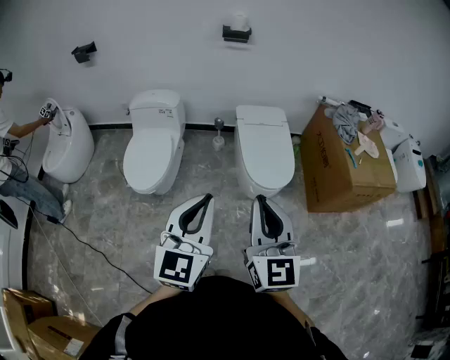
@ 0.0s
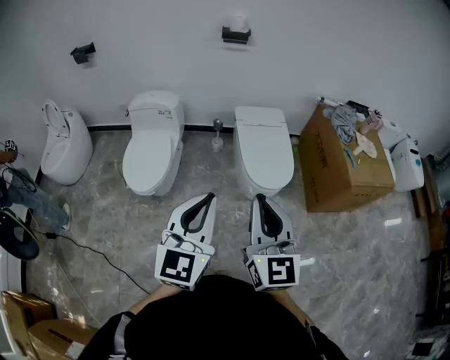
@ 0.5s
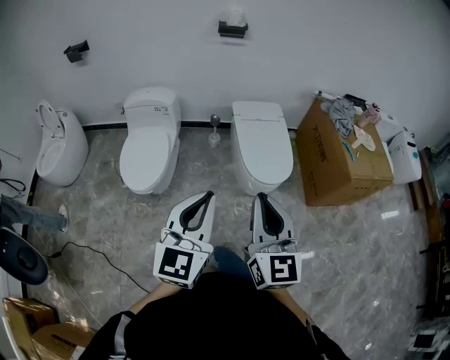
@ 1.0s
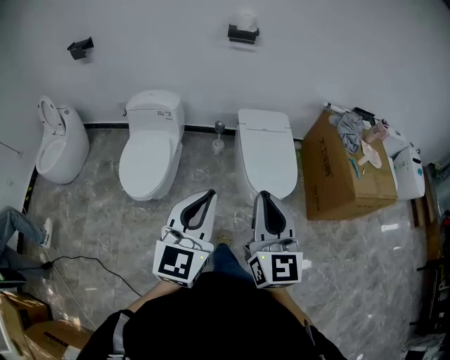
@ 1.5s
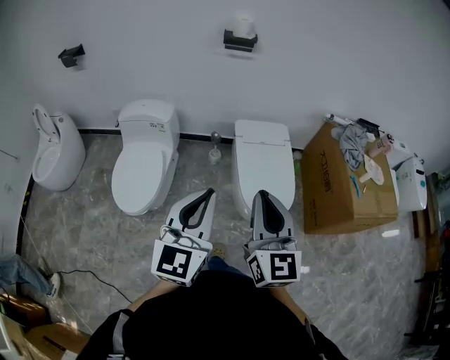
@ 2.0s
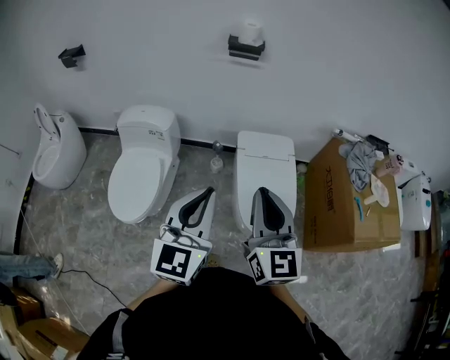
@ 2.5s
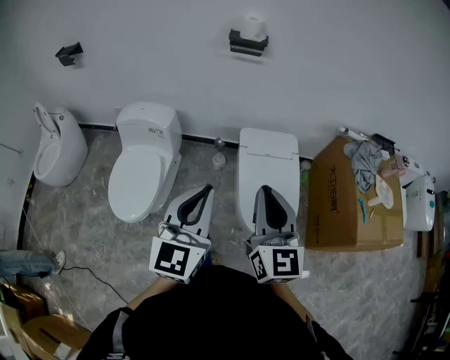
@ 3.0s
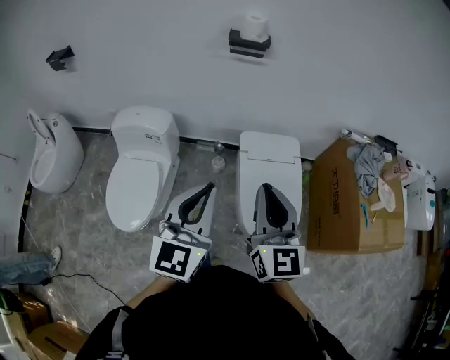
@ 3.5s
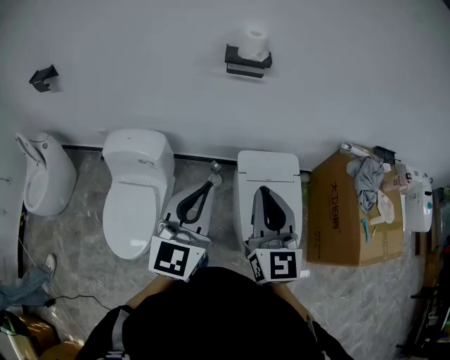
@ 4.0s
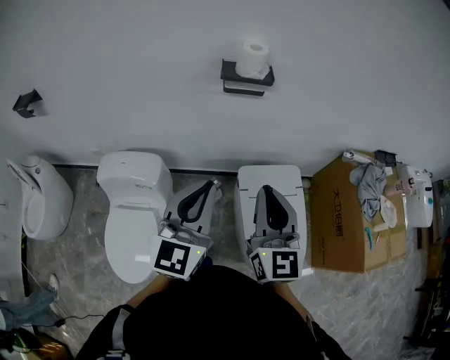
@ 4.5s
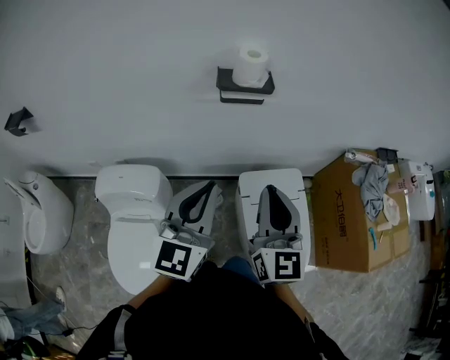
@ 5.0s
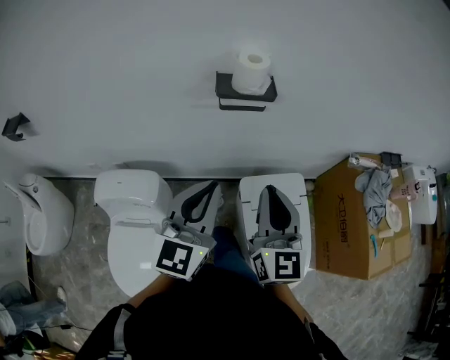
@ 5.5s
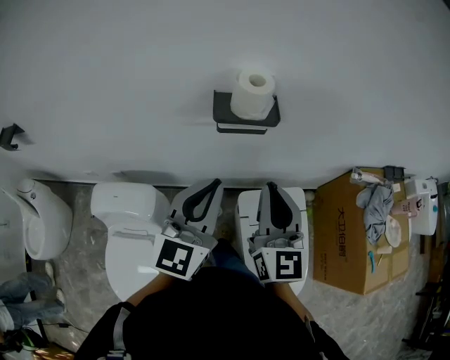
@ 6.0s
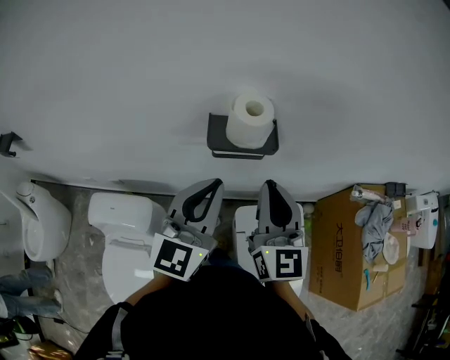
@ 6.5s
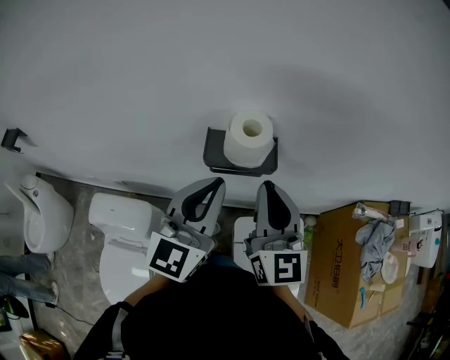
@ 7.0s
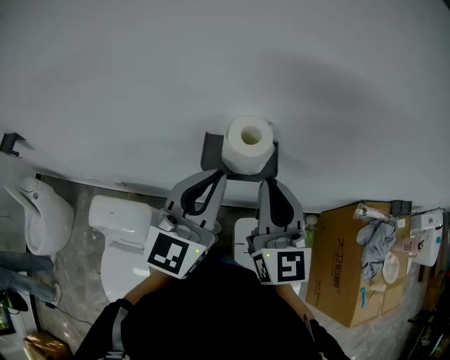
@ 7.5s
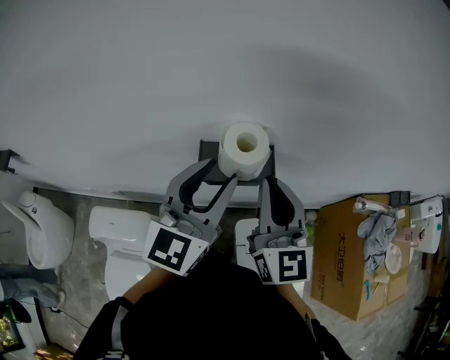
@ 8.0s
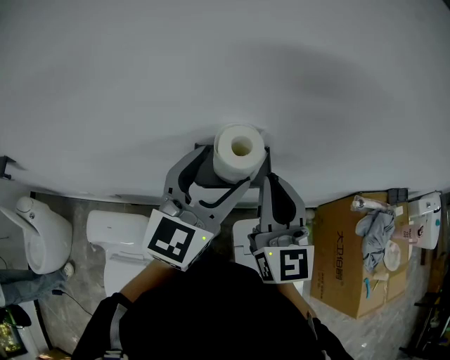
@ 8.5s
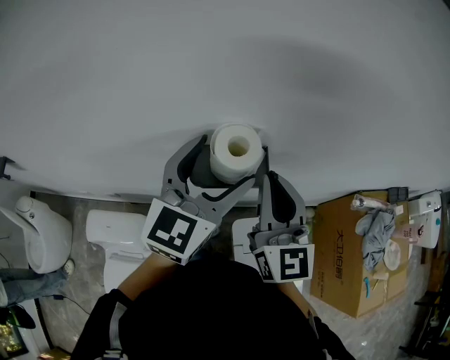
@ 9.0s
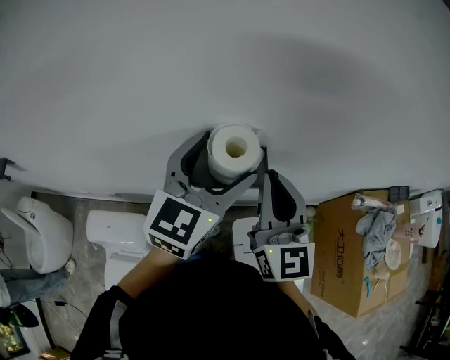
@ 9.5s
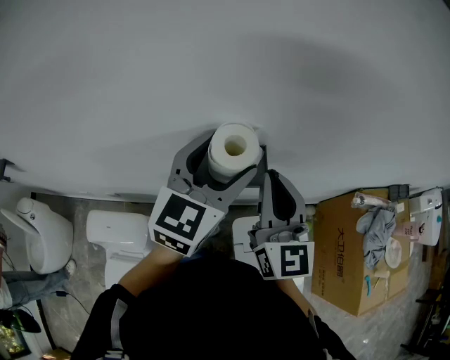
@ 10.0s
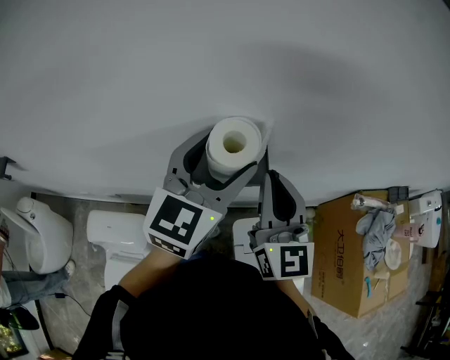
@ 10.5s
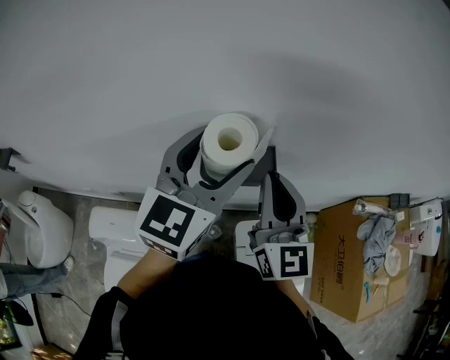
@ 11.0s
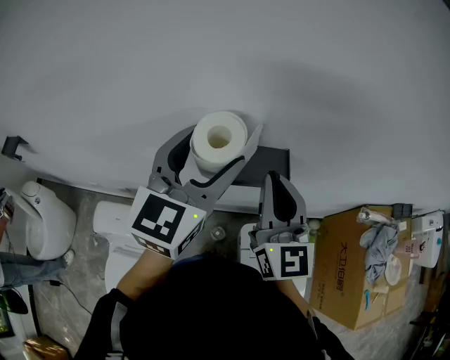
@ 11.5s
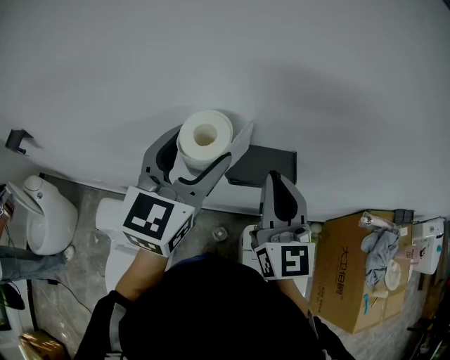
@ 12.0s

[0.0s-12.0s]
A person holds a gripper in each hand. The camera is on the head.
0.0s to 2.0s: The two grippers go some 20 cm forward.
2.0s to 4.0s: The two grippers go roughly 35 cm forward.
4.0s to 6.0s: Both grippers move forward, roughly 30 cm.
6.0s to 8.0s: The grippers both shift forward by approximately 15 cm. The left gripper opens.
8.0s to 10.0s: The left gripper travels forward by some 5 cm, and opens its fingers.
10.0s to 12.0s: The right gripper travels to the left by about 5 cm; the left gripper shifts roughly 10 cm to the left.

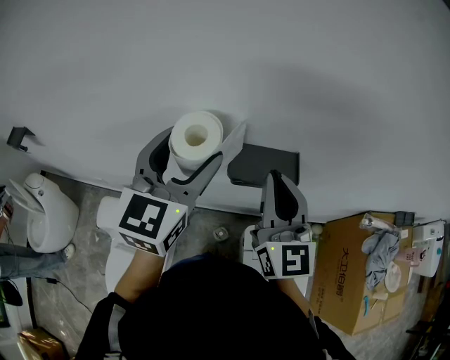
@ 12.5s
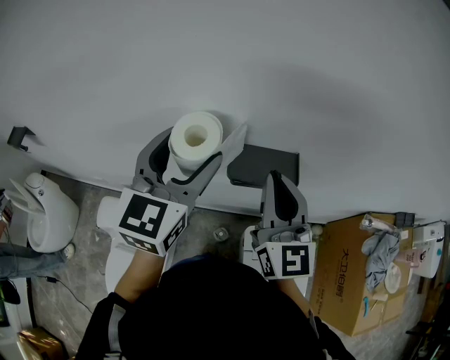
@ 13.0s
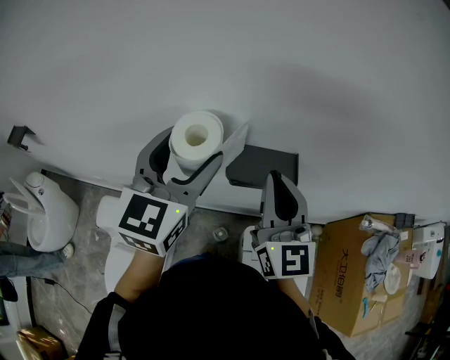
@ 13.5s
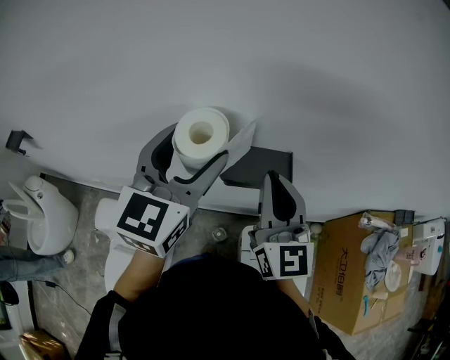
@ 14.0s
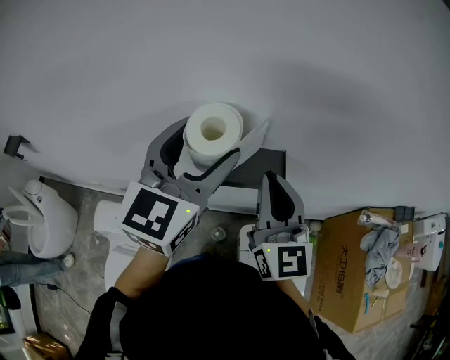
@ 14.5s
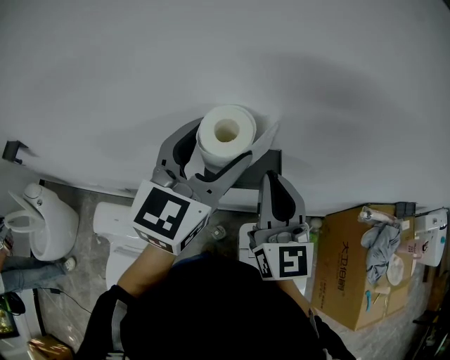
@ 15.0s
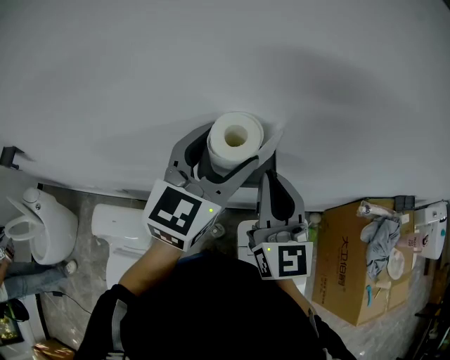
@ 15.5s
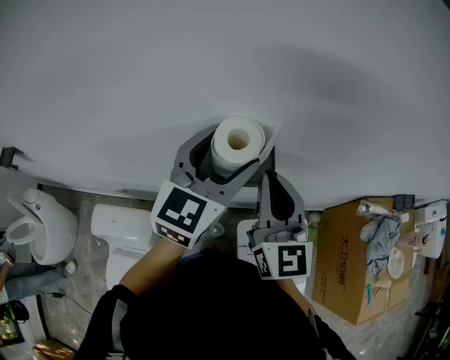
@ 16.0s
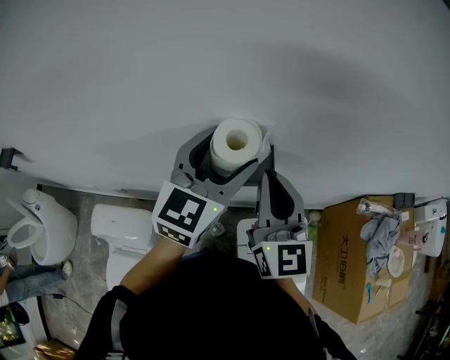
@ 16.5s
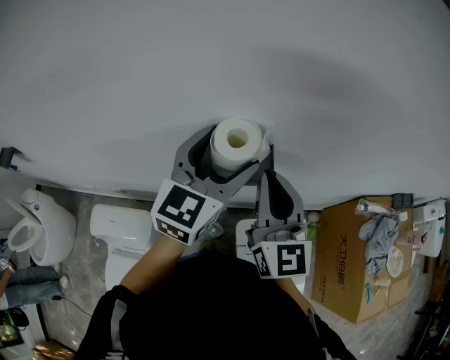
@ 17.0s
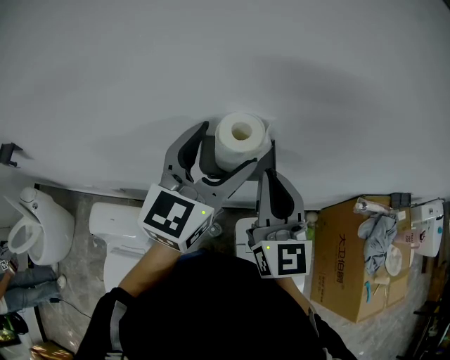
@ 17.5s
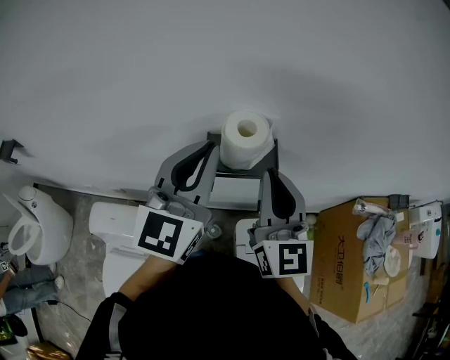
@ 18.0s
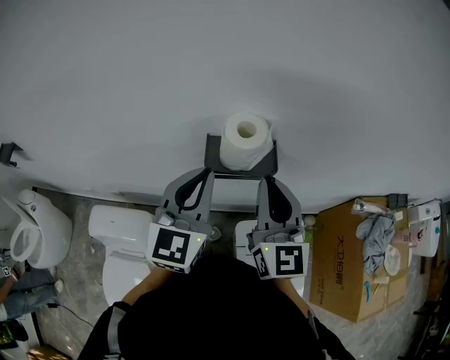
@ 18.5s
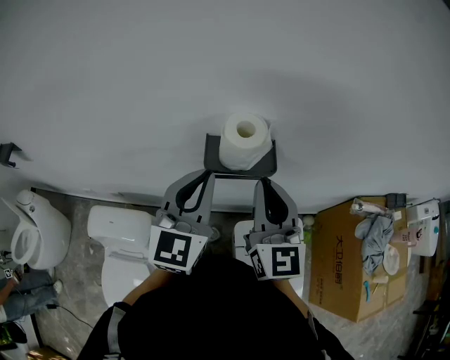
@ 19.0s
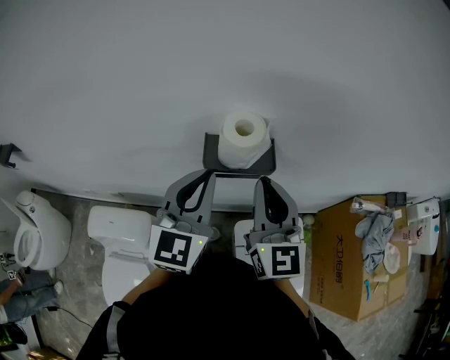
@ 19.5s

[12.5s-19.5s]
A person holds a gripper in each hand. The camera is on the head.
12.5s to 14.5s: The left gripper moves to the right, some 5 cm.
14.5s to 16.0s: The left gripper shifts some 10 cm to the right and downward.
16.0s to 17.5s: The grippers stay close to where they were, moving slightly.
17.5s to 19.5s: The left gripper travels downward and backward by approximately 10 cm, and closes its fingers.

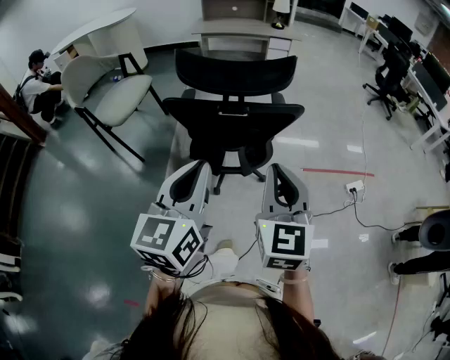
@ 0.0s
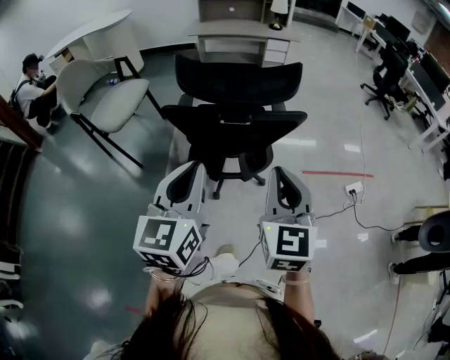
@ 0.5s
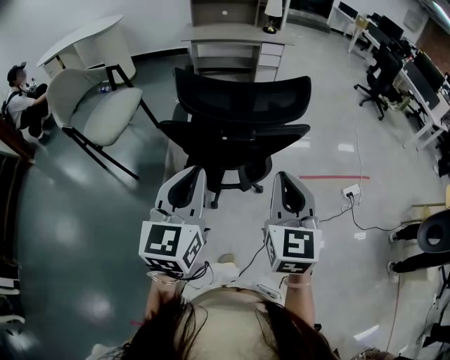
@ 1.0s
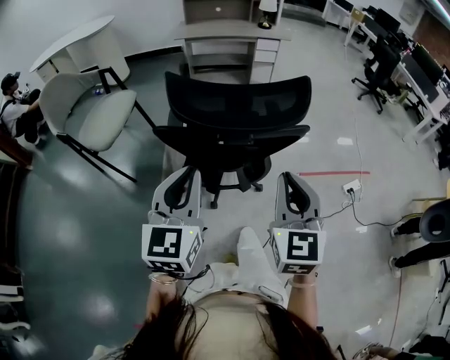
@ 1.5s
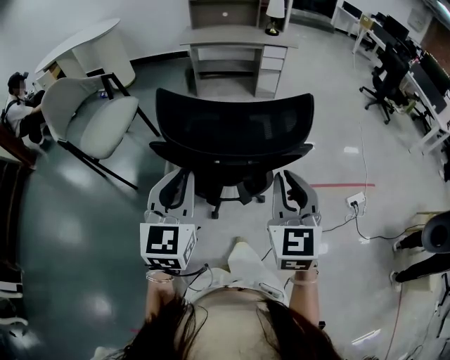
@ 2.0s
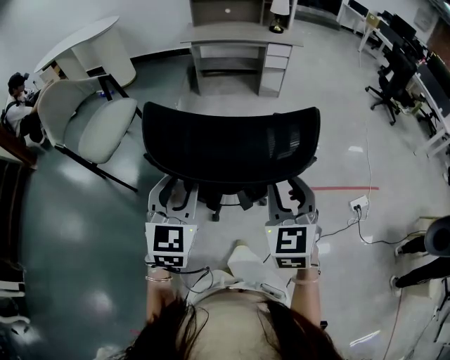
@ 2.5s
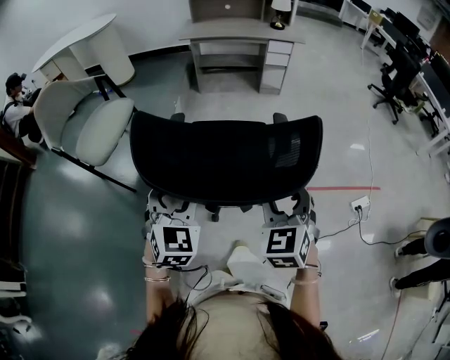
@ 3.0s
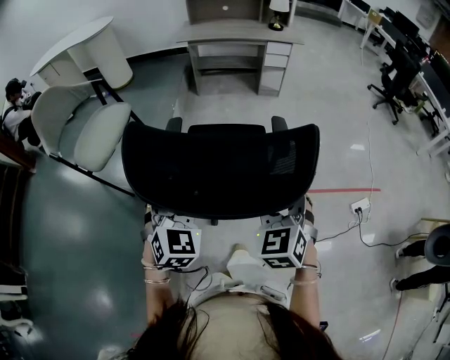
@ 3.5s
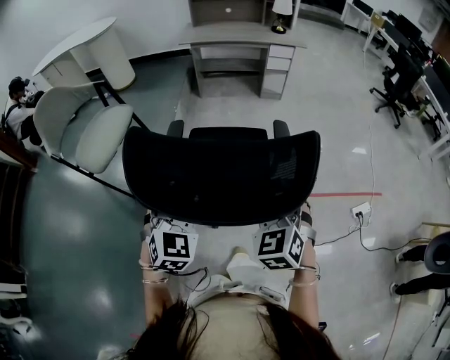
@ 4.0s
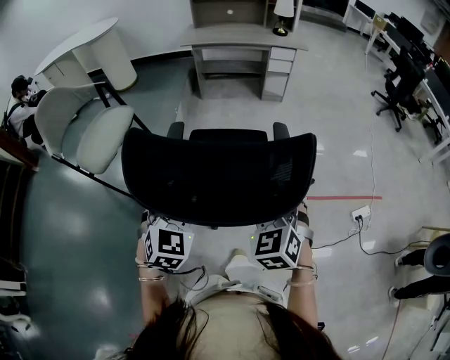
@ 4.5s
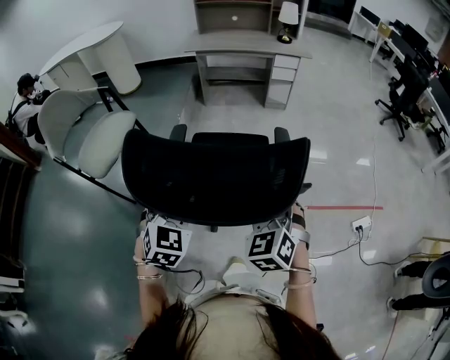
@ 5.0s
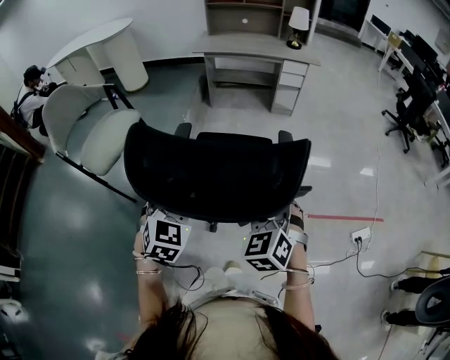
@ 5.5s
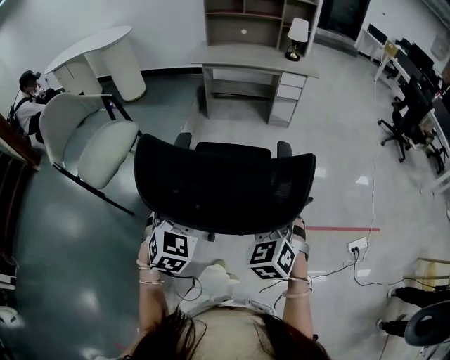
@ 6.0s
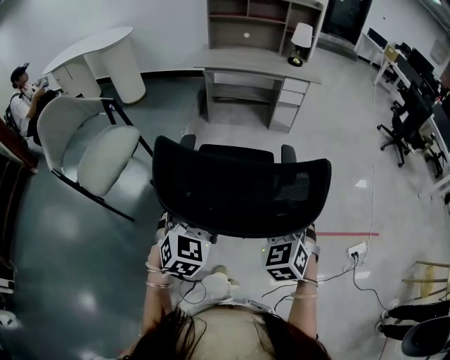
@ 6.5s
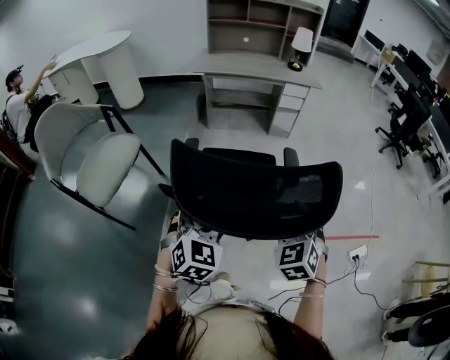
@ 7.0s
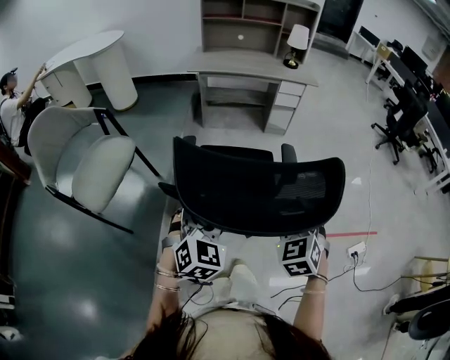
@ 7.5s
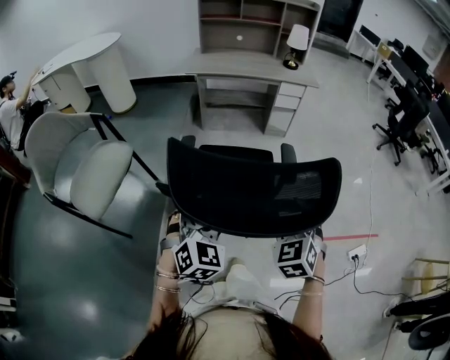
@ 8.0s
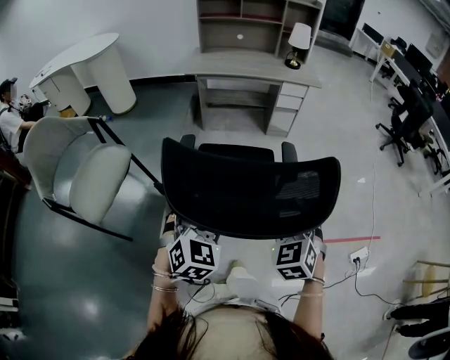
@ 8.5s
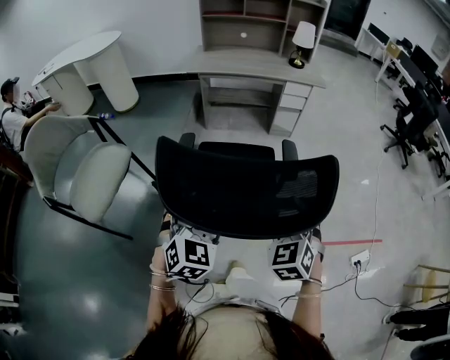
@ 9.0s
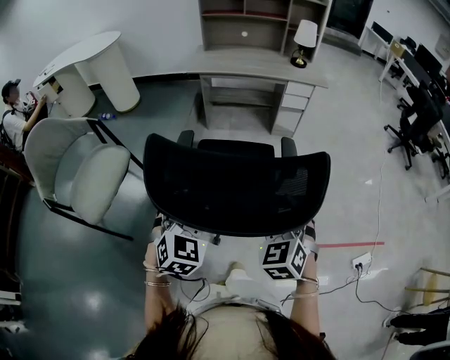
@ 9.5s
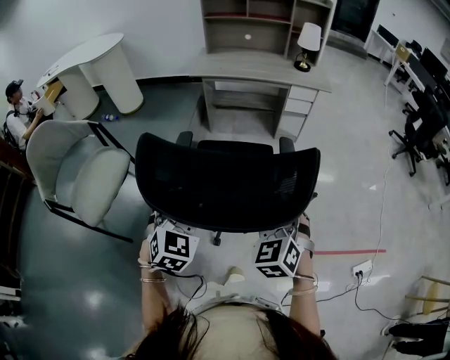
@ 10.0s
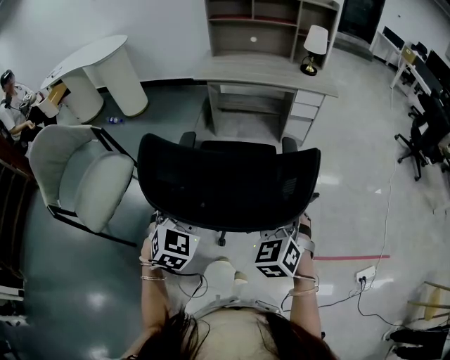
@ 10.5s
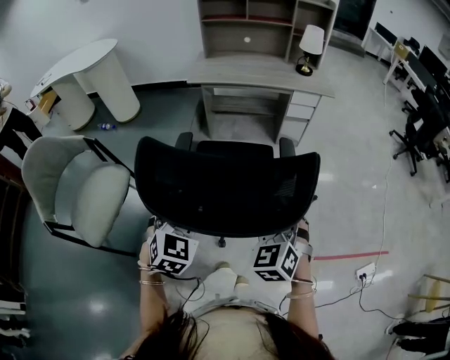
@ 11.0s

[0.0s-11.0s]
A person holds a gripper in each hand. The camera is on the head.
0.0s to 2.0s: The grippers both shift forward by approximately 15 cm.
2.0s to 3.5s: The two grippers go some 15 cm forward and downward. The left gripper swivels approximately 30 degrees, and opens its fingers, while the right gripper changes its angle by roughly 20 degrees, and opens up.
3.5s to 5.5s: Both grippers move forward, some 5 cm.
5.5s to 7.5s: The grippers both shift forward by roughly 10 cm.
7.5s to 9.0s: The two grippers go about 5 cm forward.
9.0s to 11.0s: Both grippers travel together forward, about 10 cm.
